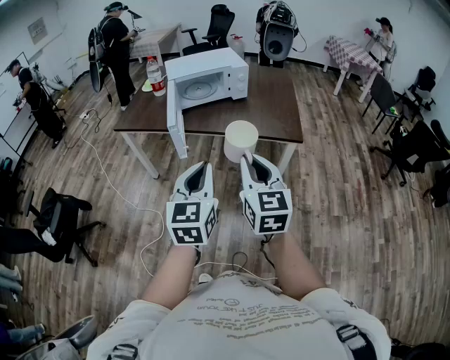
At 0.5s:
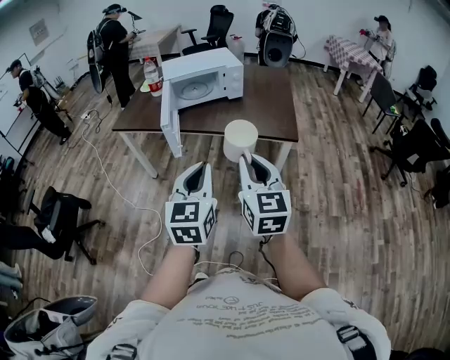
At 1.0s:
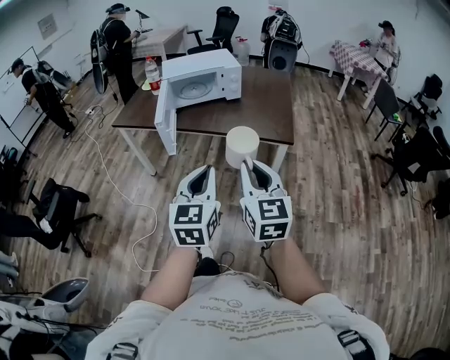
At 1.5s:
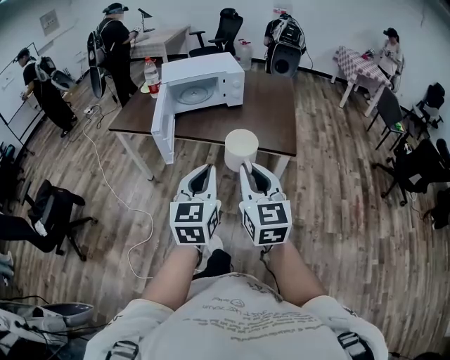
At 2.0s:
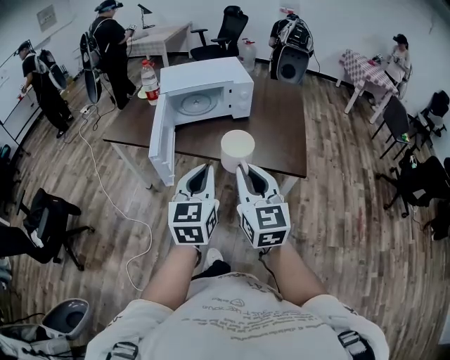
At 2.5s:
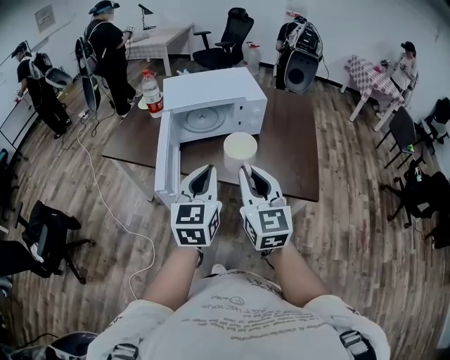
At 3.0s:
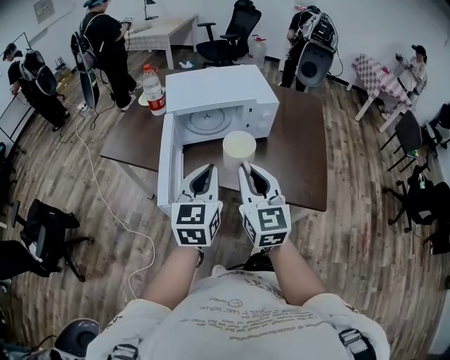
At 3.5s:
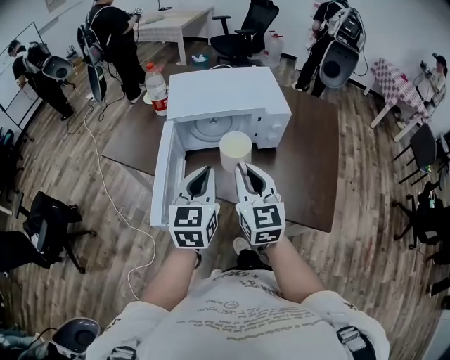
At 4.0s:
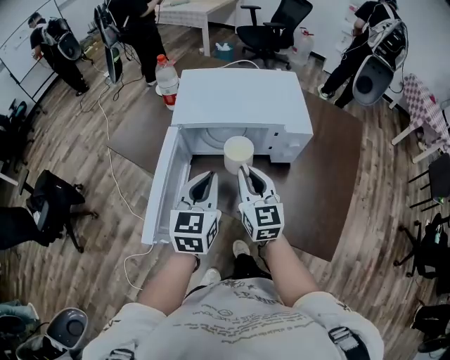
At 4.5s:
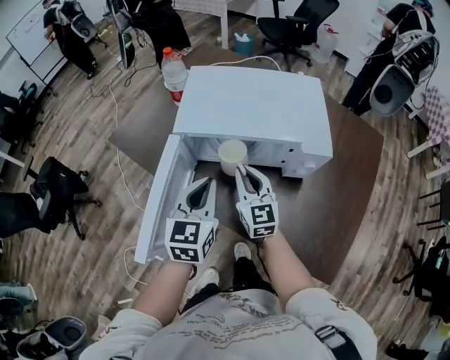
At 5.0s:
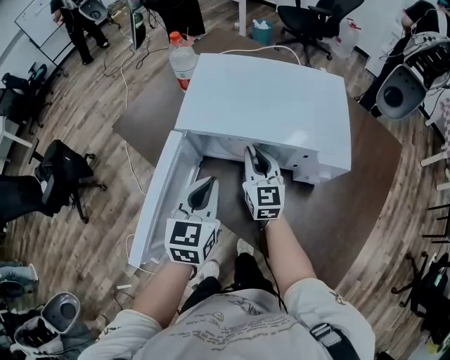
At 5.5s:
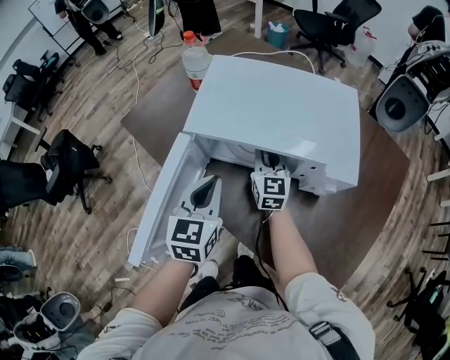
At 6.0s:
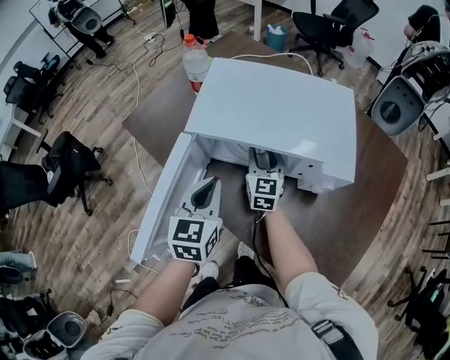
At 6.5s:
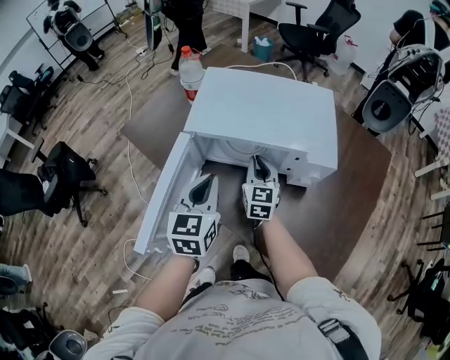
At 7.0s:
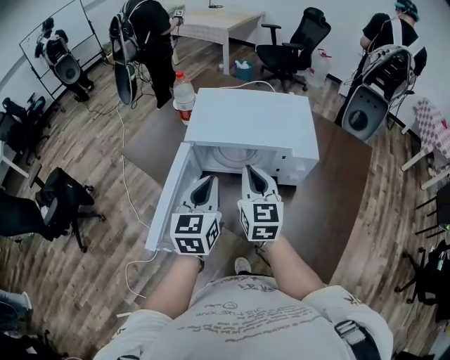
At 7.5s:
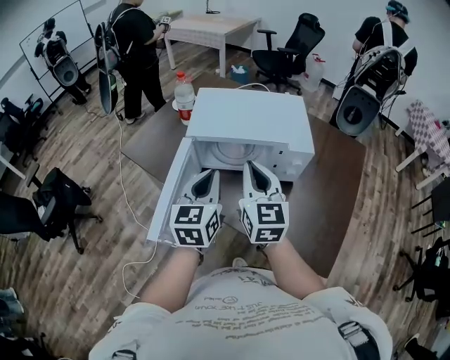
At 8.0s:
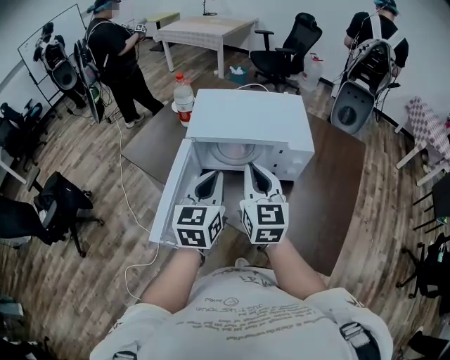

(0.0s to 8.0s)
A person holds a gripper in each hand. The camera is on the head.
0.0s - 2.0s: Both grippers move forward, roughly 15 cm.
2.0s - 4.0s: Both grippers travel together forward, some 35 cm.
4.0s - 6.0s: The right gripper is displaced forward and downward by approximately 25 cm, and opens; the left gripper travels forward and downward by approximately 10 cm.
6.0s - 8.0s: The left gripper is displaced upward and backward by about 10 cm. The right gripper goes some 30 cm upward and backward, and closes its fingers.

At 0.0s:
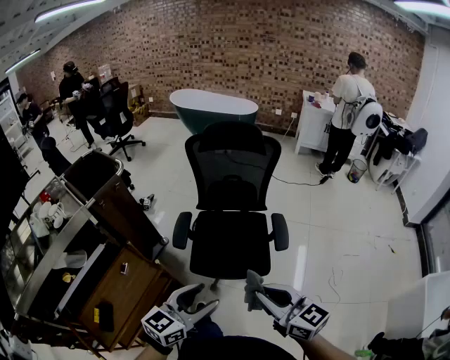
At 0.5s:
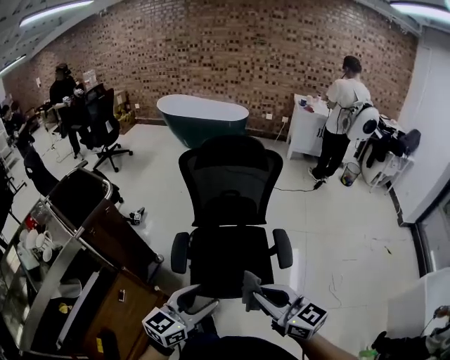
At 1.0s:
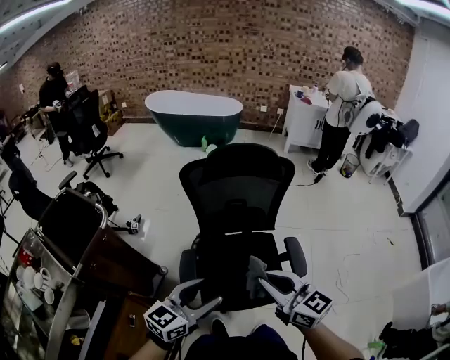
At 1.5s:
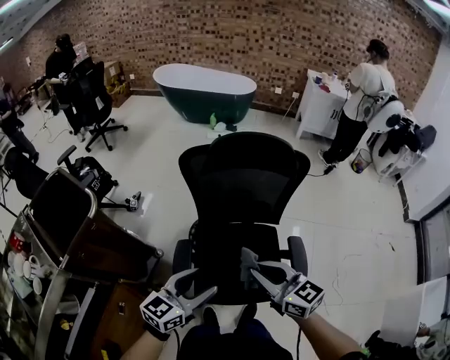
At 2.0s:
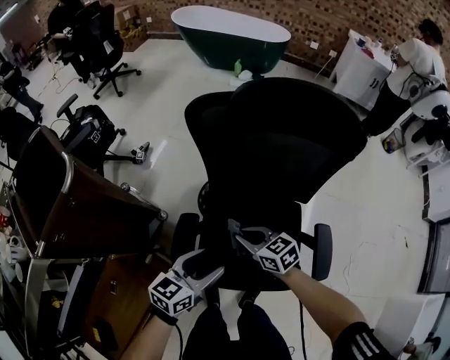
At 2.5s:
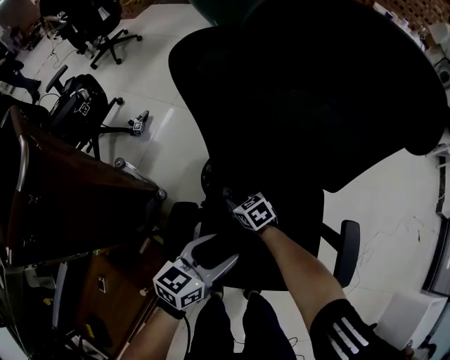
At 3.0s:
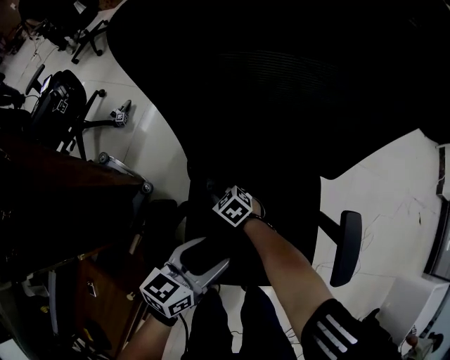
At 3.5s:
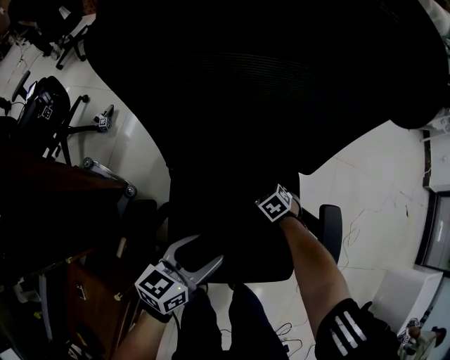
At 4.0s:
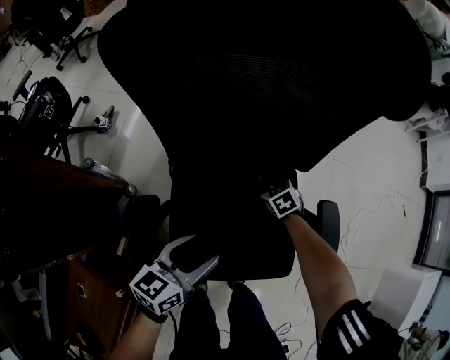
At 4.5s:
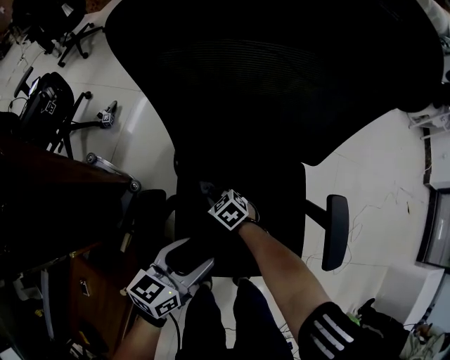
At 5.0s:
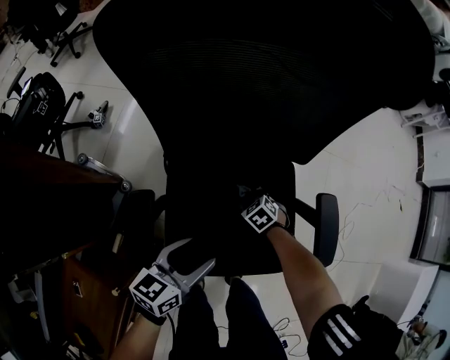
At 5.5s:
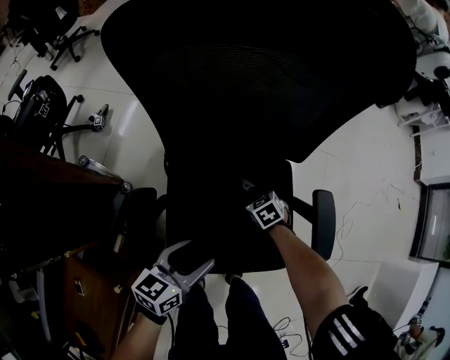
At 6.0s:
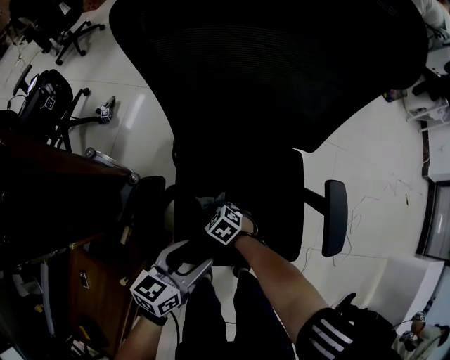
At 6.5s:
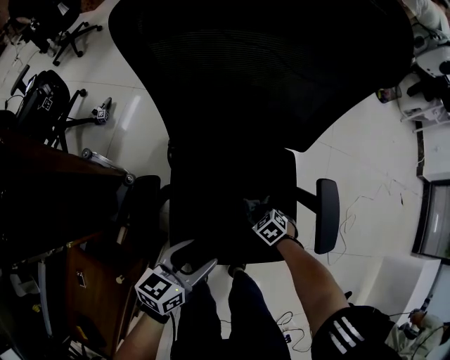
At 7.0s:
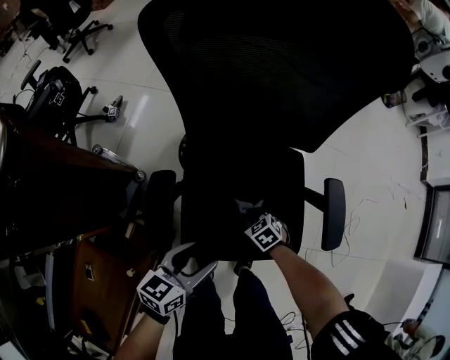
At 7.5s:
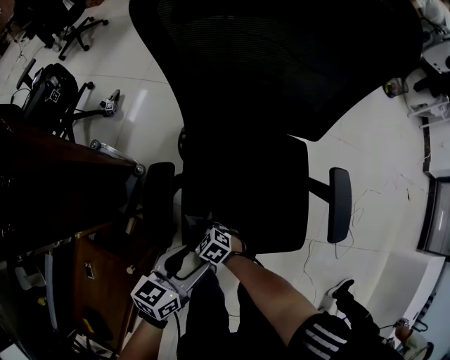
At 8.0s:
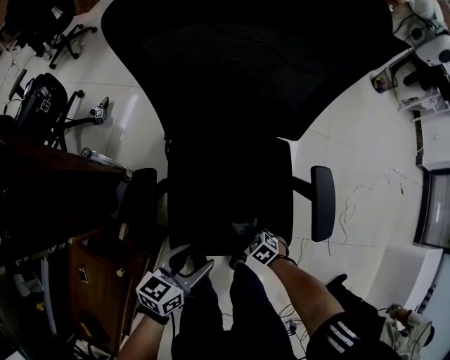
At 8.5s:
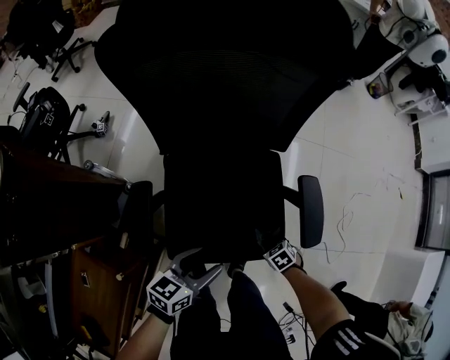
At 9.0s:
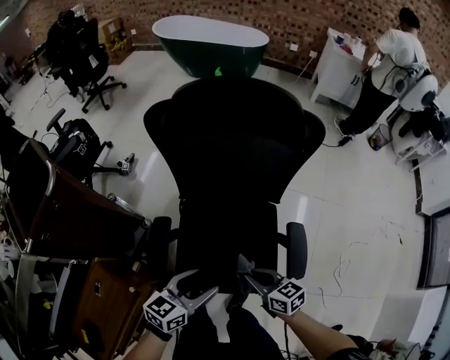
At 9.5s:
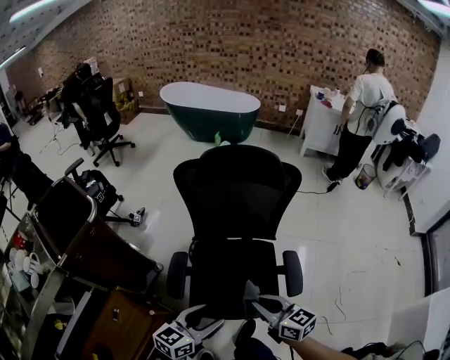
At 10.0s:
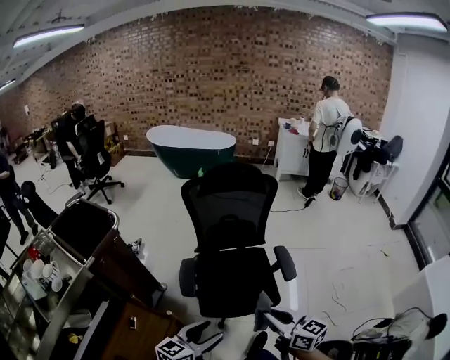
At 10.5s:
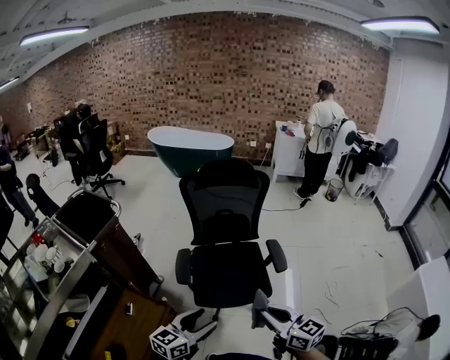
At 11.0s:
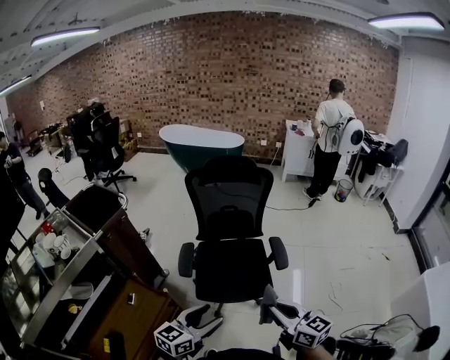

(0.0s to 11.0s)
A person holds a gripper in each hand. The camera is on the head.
0.0s - 2.0s: Both grippers are carried forward, about 50 cm. Both grippers travel together downward, approximately 25 cm. The right gripper swivels about 30 degrees.
2.0s - 3.5s: The left gripper moves downward and to the right, some 15 cm. The right gripper goes roughly 35 cm downward and to the right, and points its fingers some 40 degrees further downward.
3.5s - 5.5s: Both grippers move backward, about 5 cm. The right gripper reaches about 20 cm to the left, then returns.
5.5s - 7.5s: The right gripper swings left and right, roughly 25 cm each way, with 2 reversals, and changes its angle by roughly 30 degrees. The left gripper travels backward and to the left by roughly 10 cm.
7.5s - 9.0s: The right gripper travels upward by about 30 cm, and rotates some 40 degrees; the left gripper is displaced upward by roughly 15 cm.
9.0s - 11.0s: Both grippers travel together backward and upward, roughly 40 cm. The right gripper turns by roughly 30 degrees.

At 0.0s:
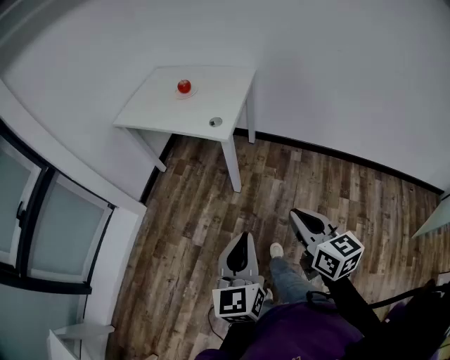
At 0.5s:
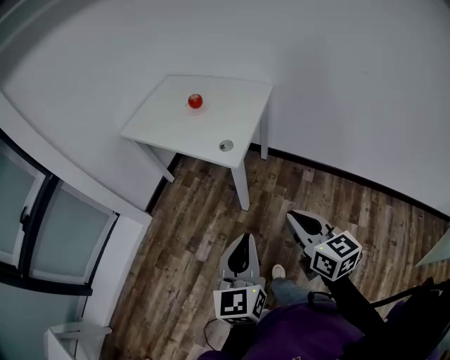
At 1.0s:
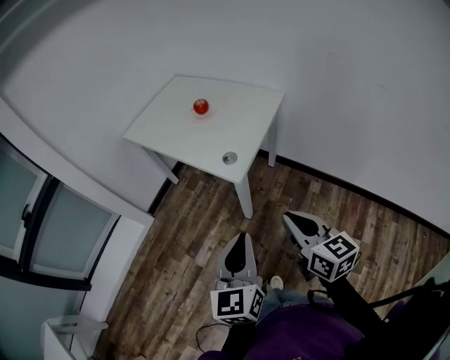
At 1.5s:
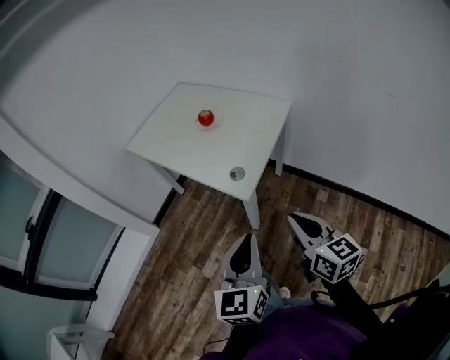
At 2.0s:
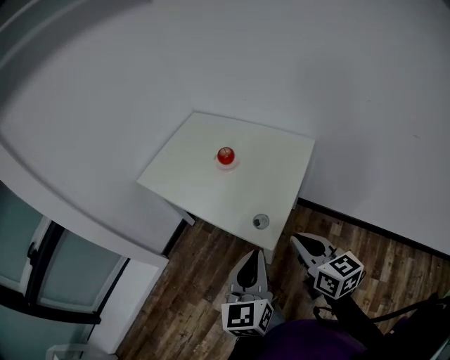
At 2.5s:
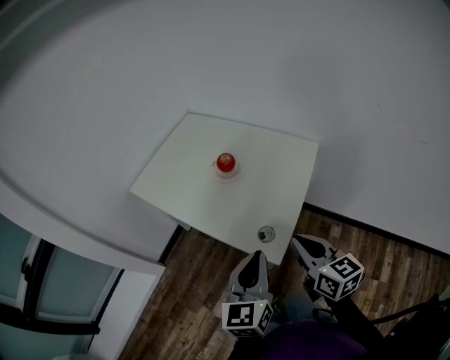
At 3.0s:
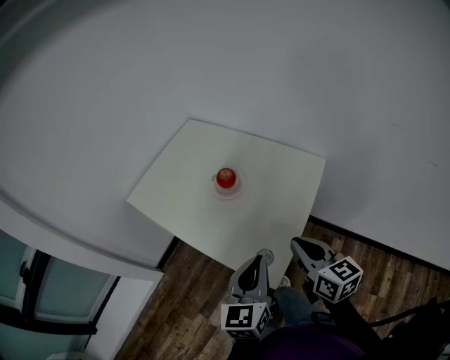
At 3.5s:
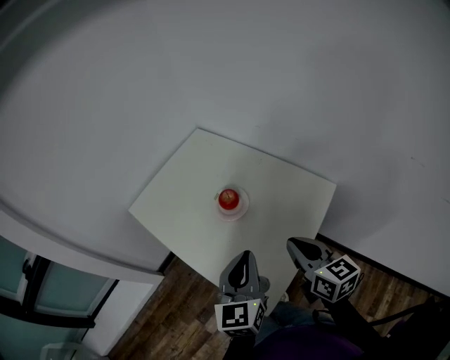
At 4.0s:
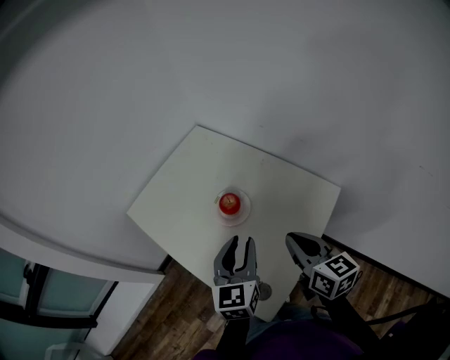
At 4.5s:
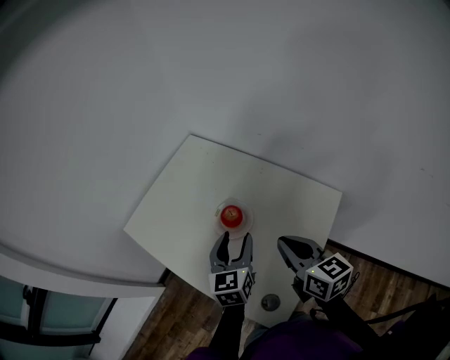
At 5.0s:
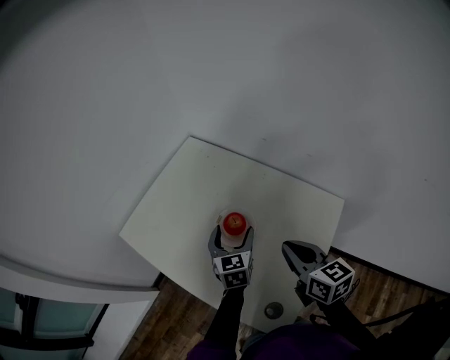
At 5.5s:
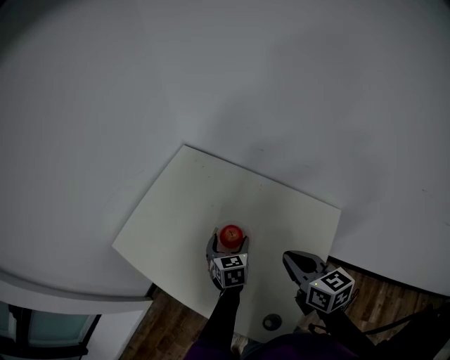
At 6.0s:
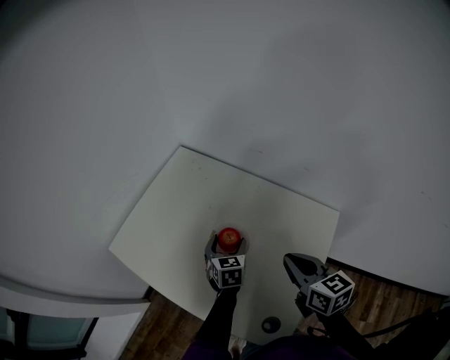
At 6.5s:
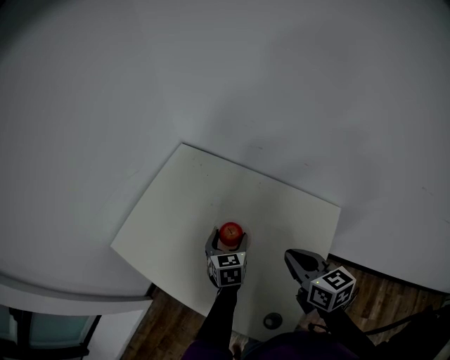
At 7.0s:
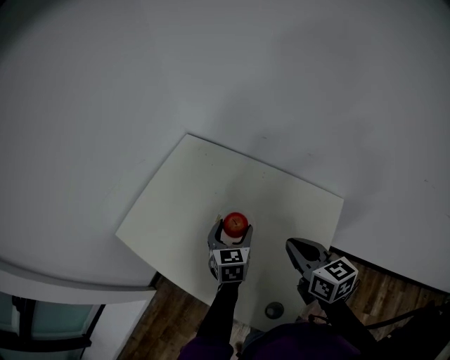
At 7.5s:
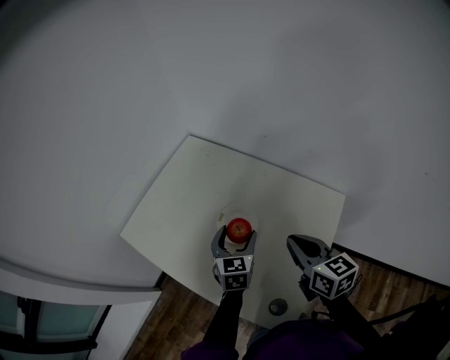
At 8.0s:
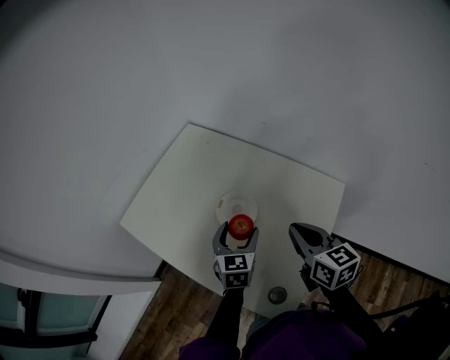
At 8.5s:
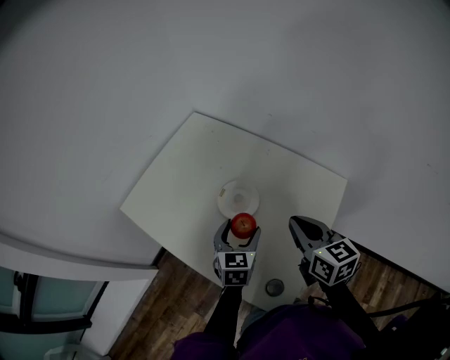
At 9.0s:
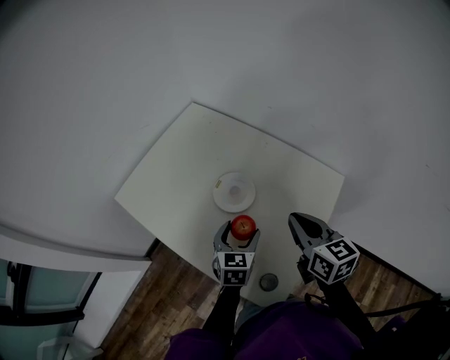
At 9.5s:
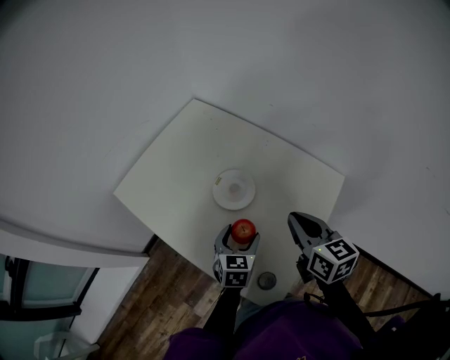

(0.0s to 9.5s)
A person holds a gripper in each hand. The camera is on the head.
0.0s - 2.0s: The grippers both shift forward by roughly 40 cm.
2.0s - 4.0s: Both grippers move forward, approximately 30 cm.
4.0s - 5.5s: The left gripper shifts roughly 25 cm downward and forward, turns by some 20 degrees, and opens. The right gripper moves forward, about 5 cm.
5.5s - 7.5s: The left gripper moves upward, approximately 5 cm.
7.5s - 9.5s: The left gripper shifts roughly 10 cm backward and downward.
